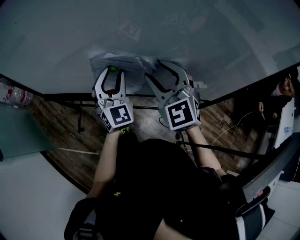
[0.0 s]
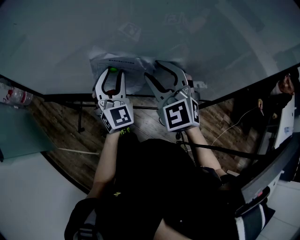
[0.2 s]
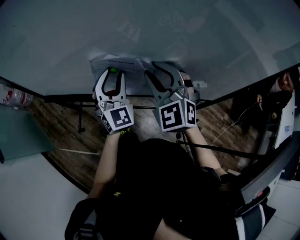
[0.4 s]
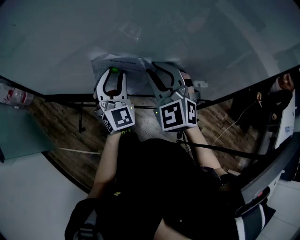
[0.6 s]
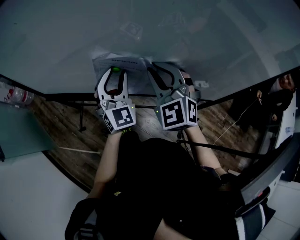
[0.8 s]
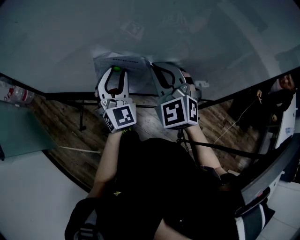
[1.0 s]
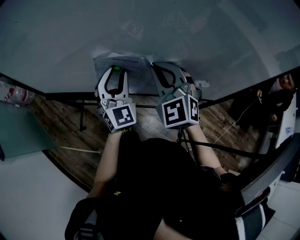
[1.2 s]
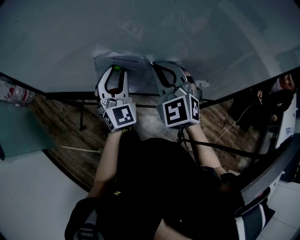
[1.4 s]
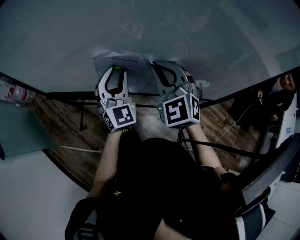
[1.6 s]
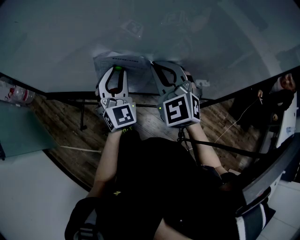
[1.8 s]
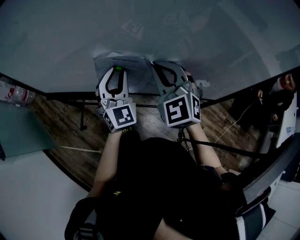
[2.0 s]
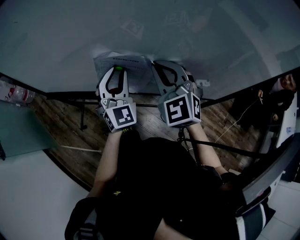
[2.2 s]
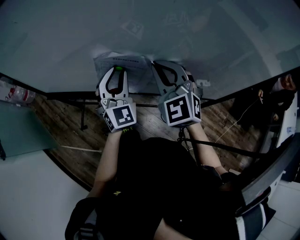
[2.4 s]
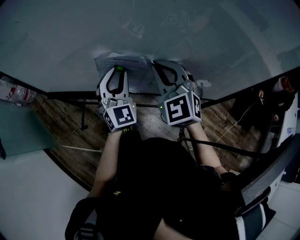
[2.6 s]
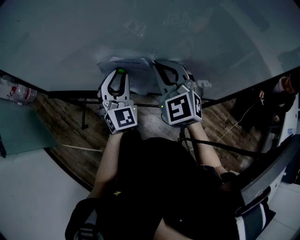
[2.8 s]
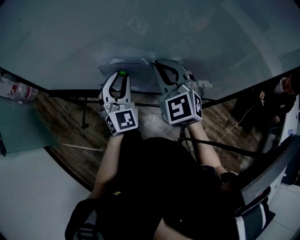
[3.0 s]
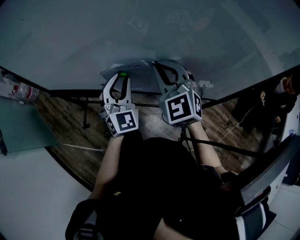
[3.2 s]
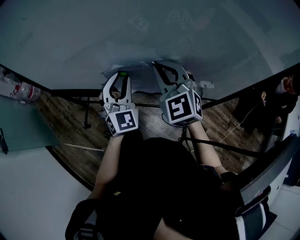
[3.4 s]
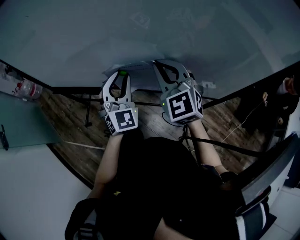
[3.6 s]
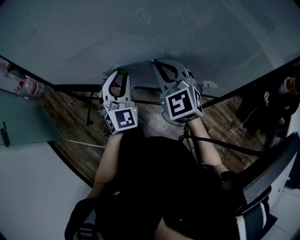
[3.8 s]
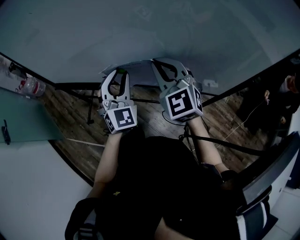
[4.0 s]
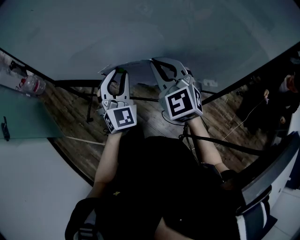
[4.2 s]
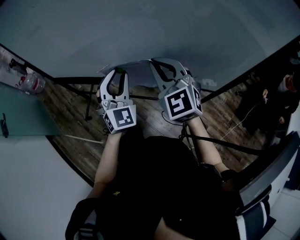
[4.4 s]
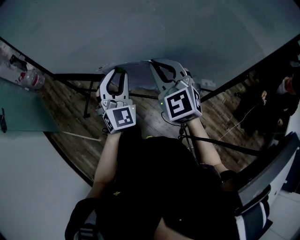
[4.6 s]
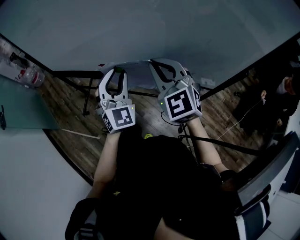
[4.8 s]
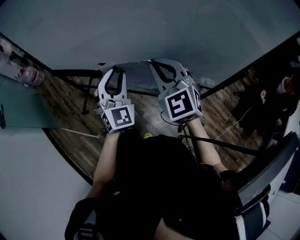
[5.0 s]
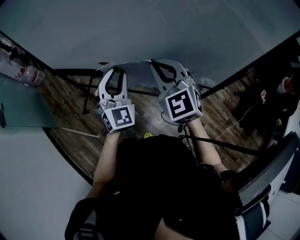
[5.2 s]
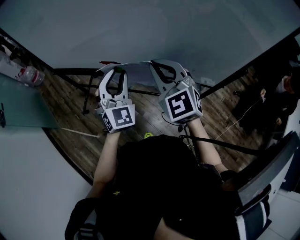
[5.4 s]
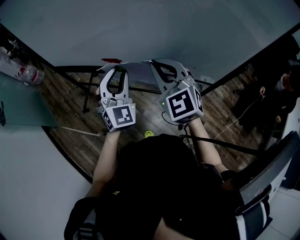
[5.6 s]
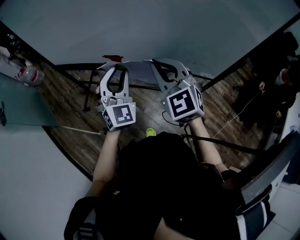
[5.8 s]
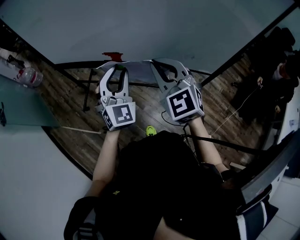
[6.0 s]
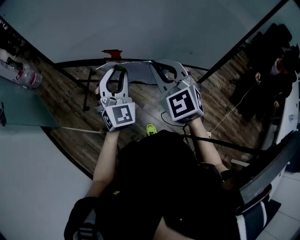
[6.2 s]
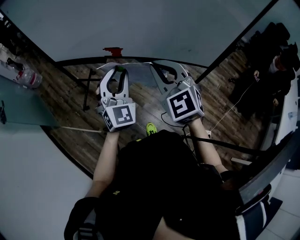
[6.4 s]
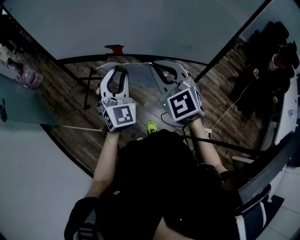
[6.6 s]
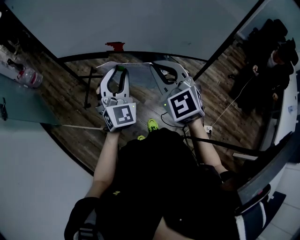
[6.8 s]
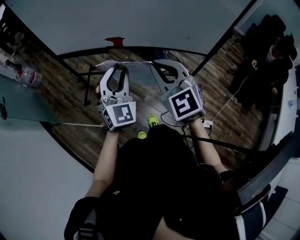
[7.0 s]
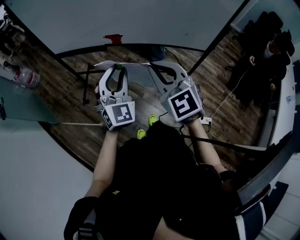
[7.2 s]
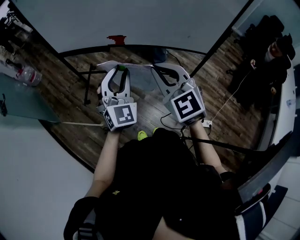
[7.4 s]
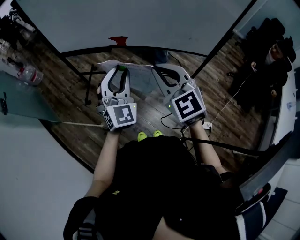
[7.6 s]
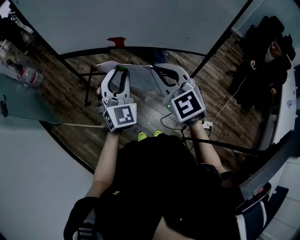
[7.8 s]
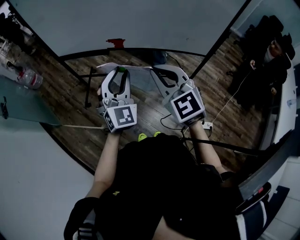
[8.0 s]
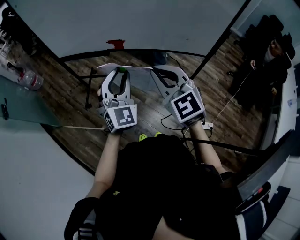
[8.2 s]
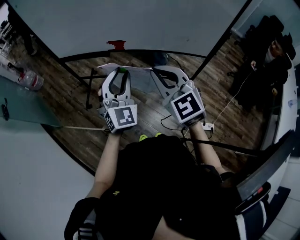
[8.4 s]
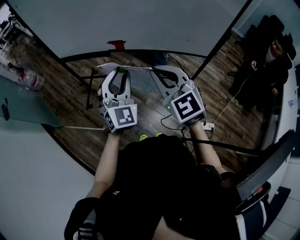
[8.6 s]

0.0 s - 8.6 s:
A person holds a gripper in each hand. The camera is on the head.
0.0 s - 1.4 s: The right gripper closes.
1.4 s - 2.8 s: Both grippers stay put.
2.8 s - 4.4 s: The two grippers go some 10 cm backward.
4.4 s - 5.8 s: The grippers both shift backward by some 10 cm.
5.8 s - 7.2 s: The left gripper heads backward, covering roughly 15 cm. Meanwhile the right gripper is displaced backward and to the left by roughly 20 cm.
7.2 s - 8.6 s: Neither gripper changes place.

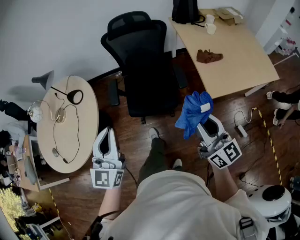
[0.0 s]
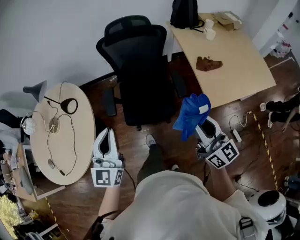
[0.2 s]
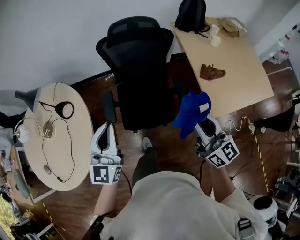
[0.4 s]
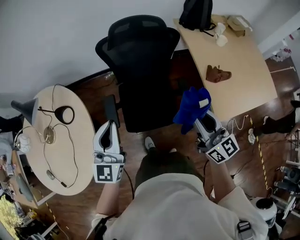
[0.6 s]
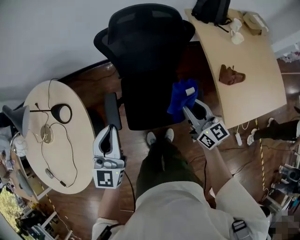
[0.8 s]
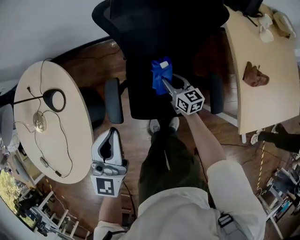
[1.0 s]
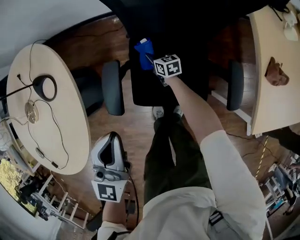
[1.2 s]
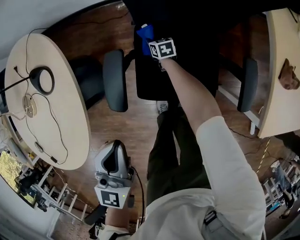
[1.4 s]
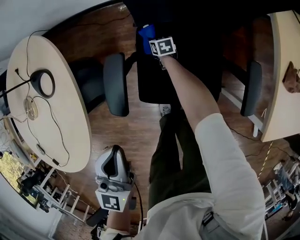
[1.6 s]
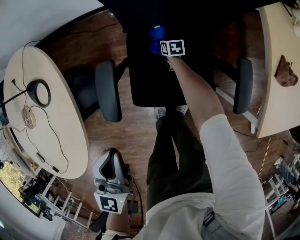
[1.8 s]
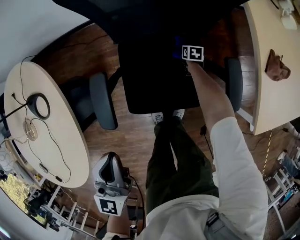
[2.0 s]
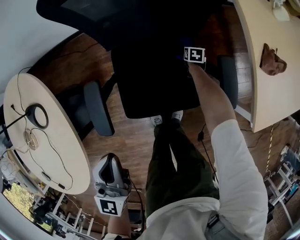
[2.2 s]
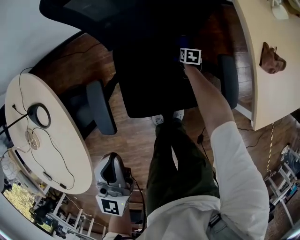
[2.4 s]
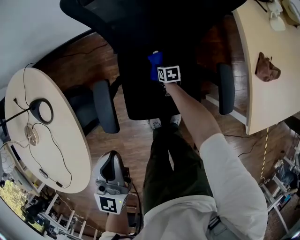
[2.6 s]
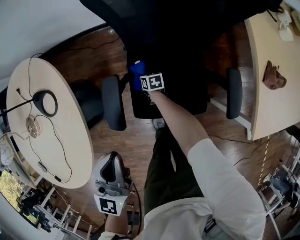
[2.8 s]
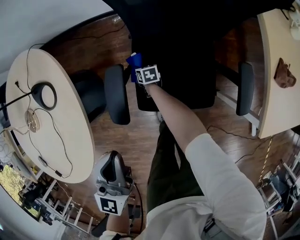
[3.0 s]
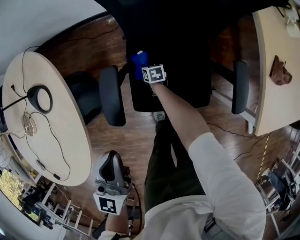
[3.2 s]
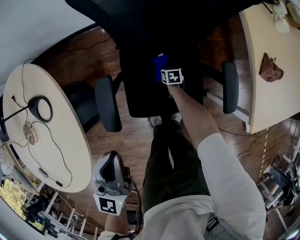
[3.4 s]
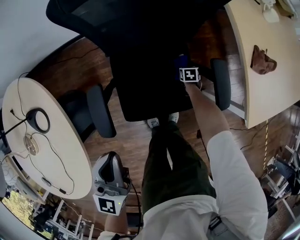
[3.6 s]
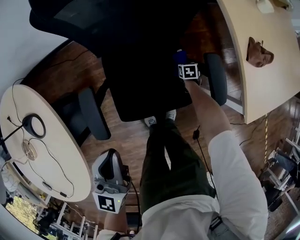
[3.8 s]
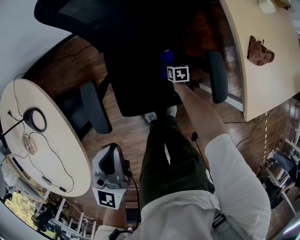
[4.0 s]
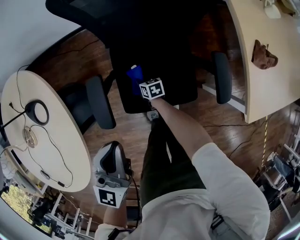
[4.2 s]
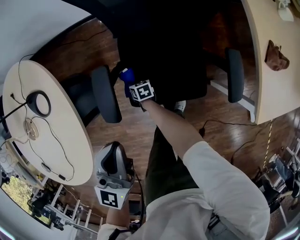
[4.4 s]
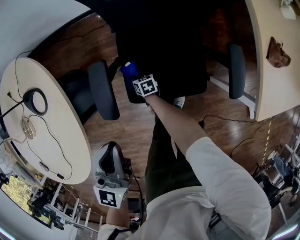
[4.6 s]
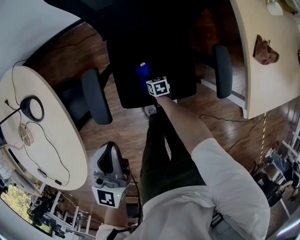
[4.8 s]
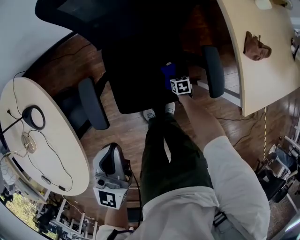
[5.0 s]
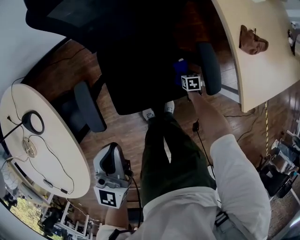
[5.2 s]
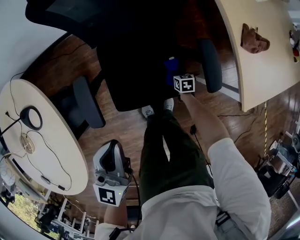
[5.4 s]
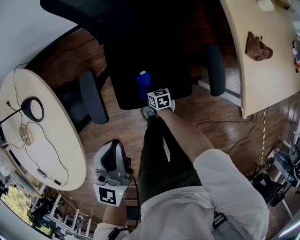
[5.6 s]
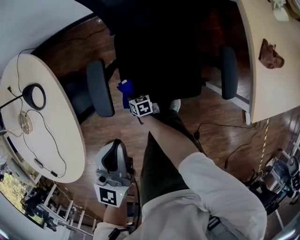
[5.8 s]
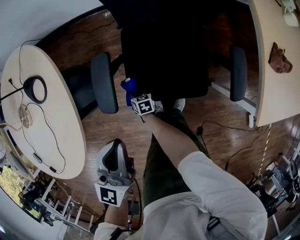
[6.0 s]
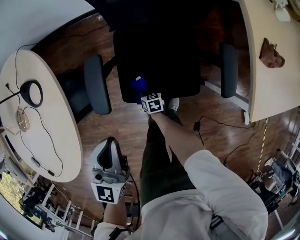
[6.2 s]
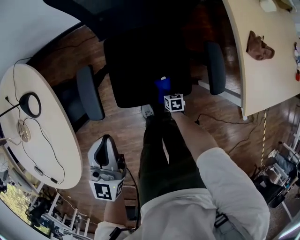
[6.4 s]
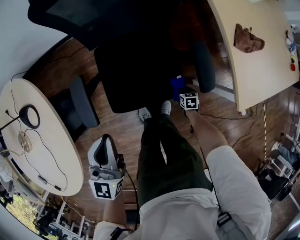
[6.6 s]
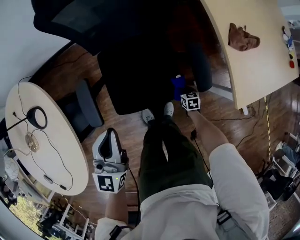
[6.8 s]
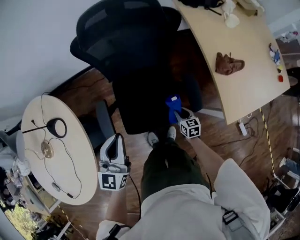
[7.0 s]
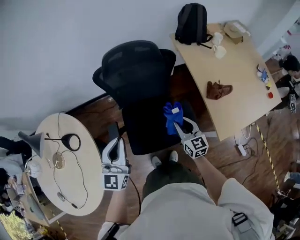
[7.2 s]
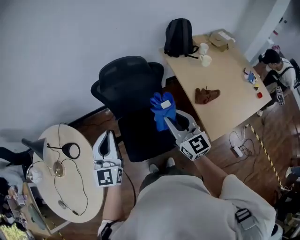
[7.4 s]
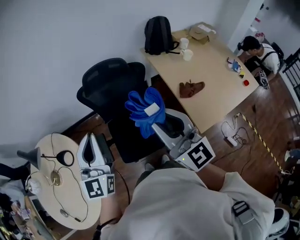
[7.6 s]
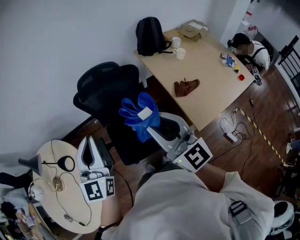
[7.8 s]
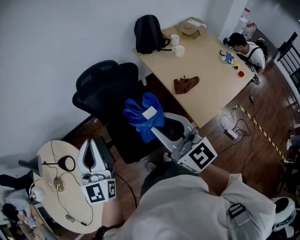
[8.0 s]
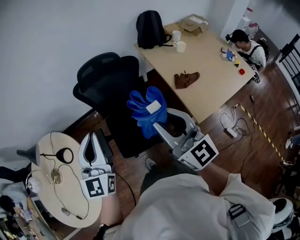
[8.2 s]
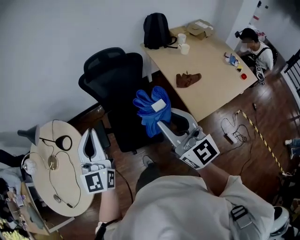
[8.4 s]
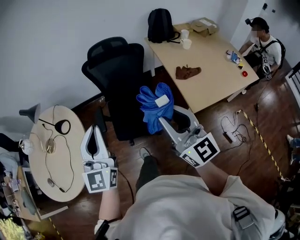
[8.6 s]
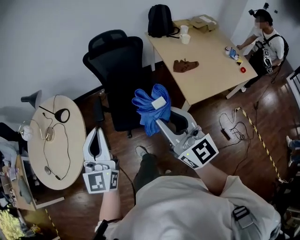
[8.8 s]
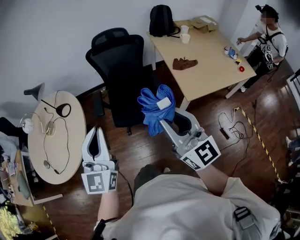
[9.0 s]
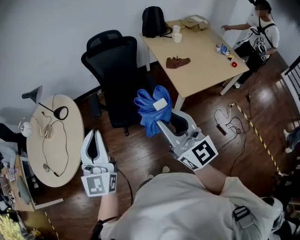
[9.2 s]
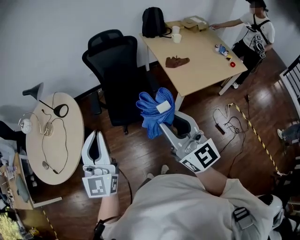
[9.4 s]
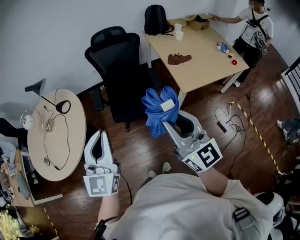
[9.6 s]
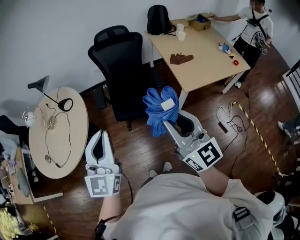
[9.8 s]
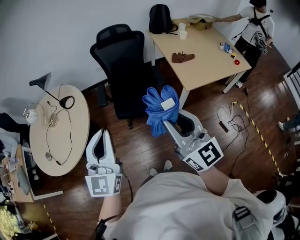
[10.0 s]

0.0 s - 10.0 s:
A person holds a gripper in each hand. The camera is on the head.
0.0 s - 1.4 s: The pair of grippers is taken forward, approximately 60 cm. The left gripper shifts roughly 30 cm downward. Meanwhile the right gripper moves downward, roughly 80 cm, and angles its fingers downward, by roughly 70 degrees.
1.4 s - 2.8 s: The right gripper is displaced backward by about 10 cm, and moves some 35 cm to the right and comes back.
2.8 s - 4.2 s: The left gripper moves about 5 cm.
4.2 s - 5.8 s: The right gripper goes left and right, approximately 40 cm each way, reversing 2 times. Meanwhile the left gripper swings left and right, roughly 10 cm each way, with 2 reversals.
5.8 s - 7.2 s: The right gripper heads upward, covering some 70 cm, and angles its fingers upward, by approximately 40 degrees. Meanwhile the left gripper shifts approximately 30 cm upward.
7.2 s - 8.6 s: The right gripper moves upward and backward, some 50 cm, and swivels approximately 30 degrees. Meanwhile the left gripper is displaced backward and upward by approximately 35 cm.
8.6 s - 10.0 s: Both grippers travel together backward, roughly 25 cm.

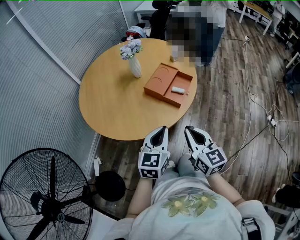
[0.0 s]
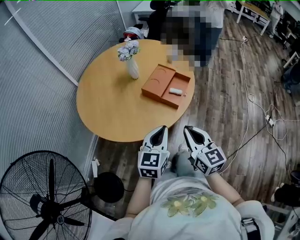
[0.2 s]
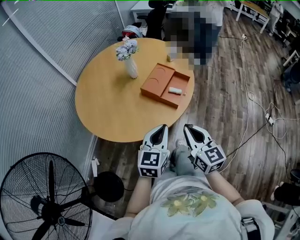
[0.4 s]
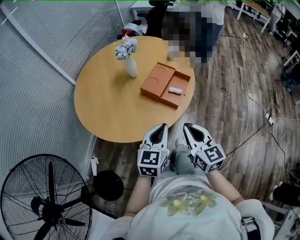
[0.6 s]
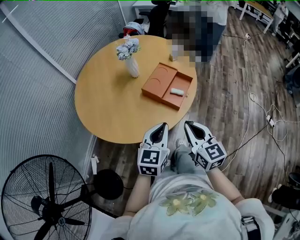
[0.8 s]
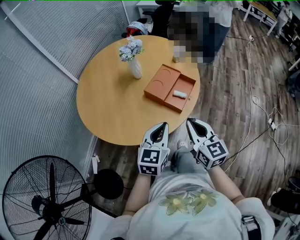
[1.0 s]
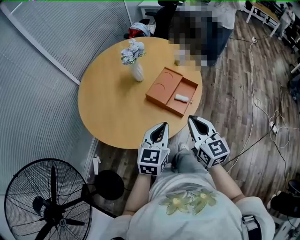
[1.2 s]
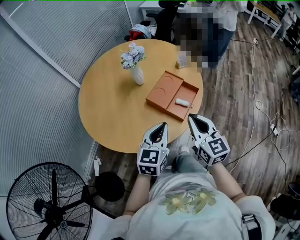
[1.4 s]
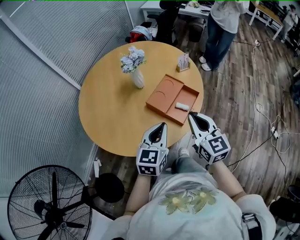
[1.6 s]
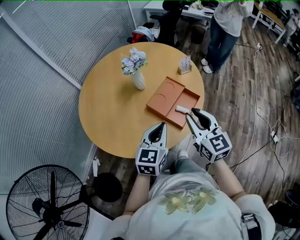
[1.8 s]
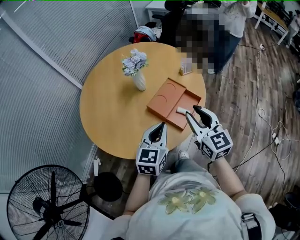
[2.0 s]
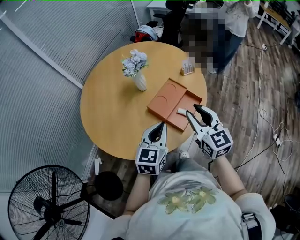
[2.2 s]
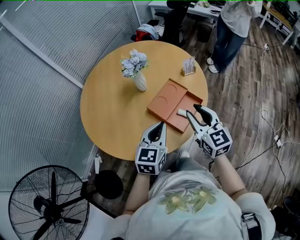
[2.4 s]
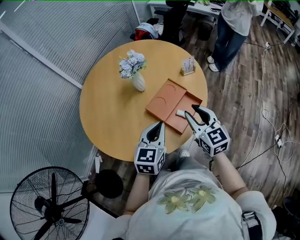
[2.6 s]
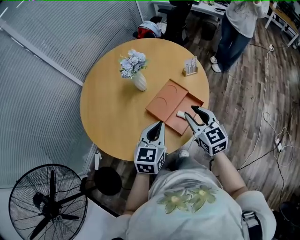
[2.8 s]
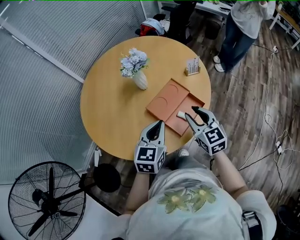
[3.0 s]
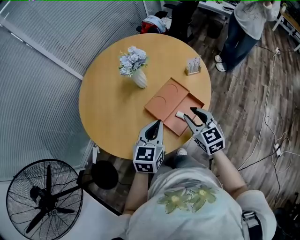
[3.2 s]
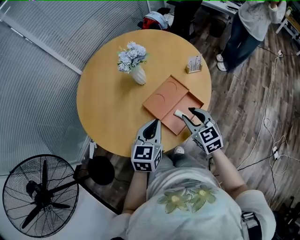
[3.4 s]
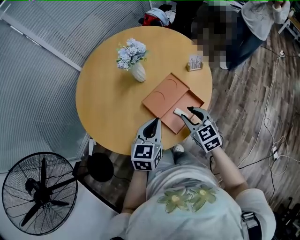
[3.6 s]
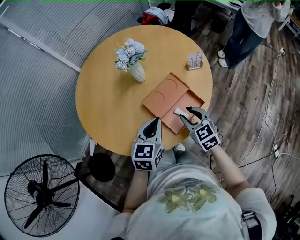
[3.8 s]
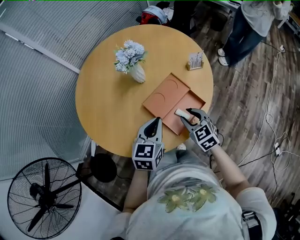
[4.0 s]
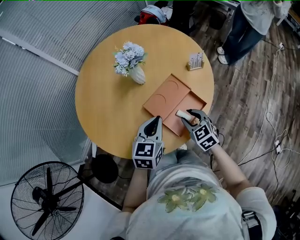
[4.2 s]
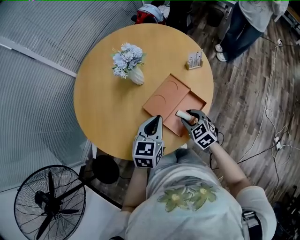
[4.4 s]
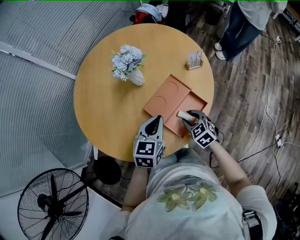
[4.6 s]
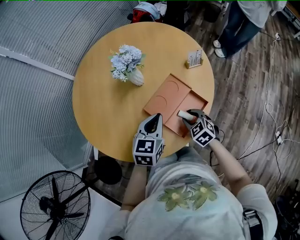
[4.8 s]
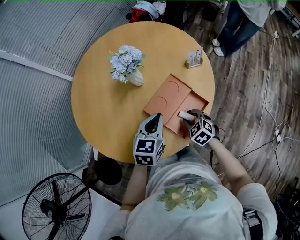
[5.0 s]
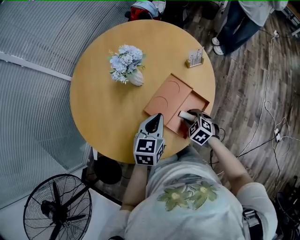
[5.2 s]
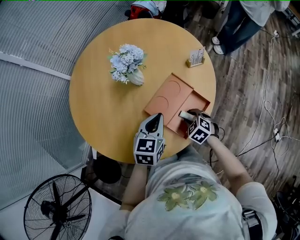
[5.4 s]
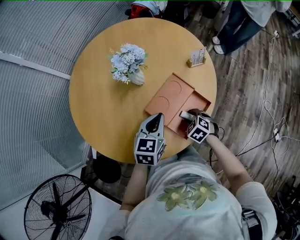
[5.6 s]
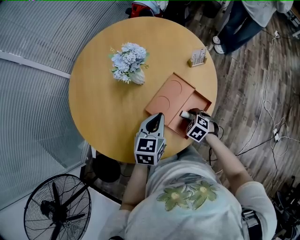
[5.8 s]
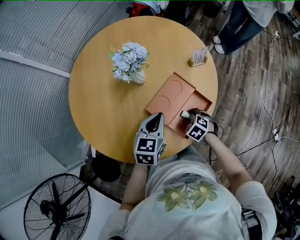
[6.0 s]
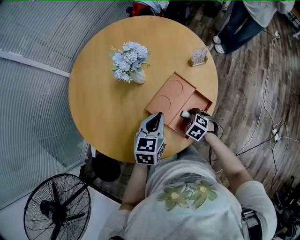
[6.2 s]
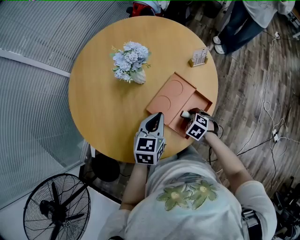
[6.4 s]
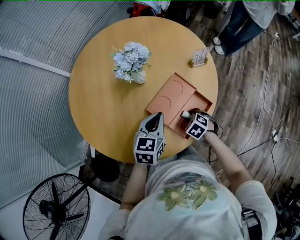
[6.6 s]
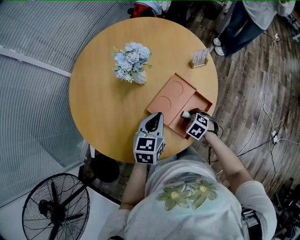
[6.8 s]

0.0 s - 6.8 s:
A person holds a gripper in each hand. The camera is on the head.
0.0 s - 1.4 s: The two grippers go roughly 15 cm forward.
1.4 s - 2.8 s: Both grippers travel together forward, some 10 cm. The right gripper opens up.
2.8 s - 4.0 s: The left gripper ends up some 5 cm from where it was, while the right gripper goes about 10 cm downward, and turns by approximately 20 degrees.
4.0 s - 5.4 s: The right gripper goes roughly 10 cm downward, and turns by about 30 degrees. The left gripper travels forward by approximately 5 cm.
5.4 s - 6.8 s: The grippers move only a little.
